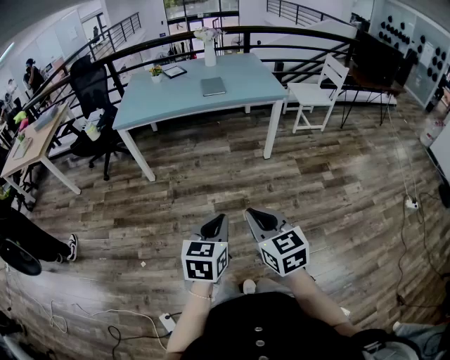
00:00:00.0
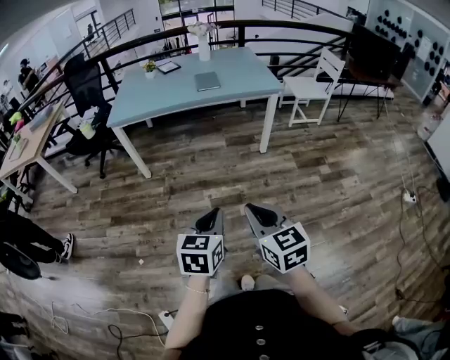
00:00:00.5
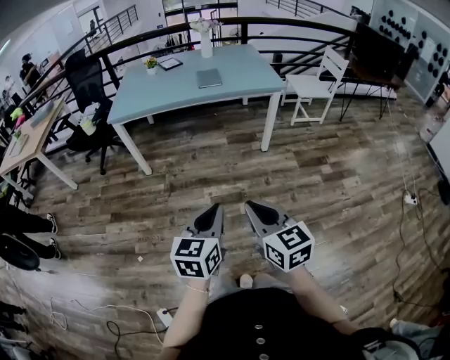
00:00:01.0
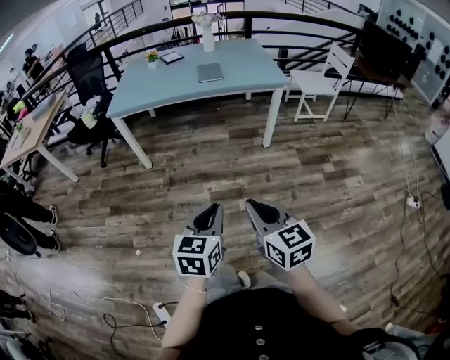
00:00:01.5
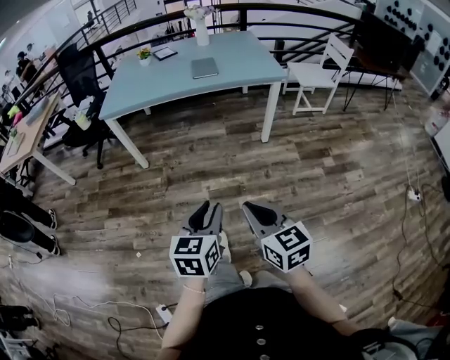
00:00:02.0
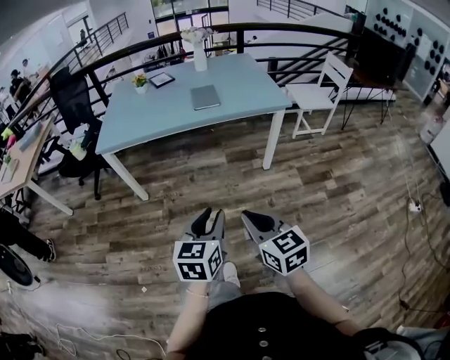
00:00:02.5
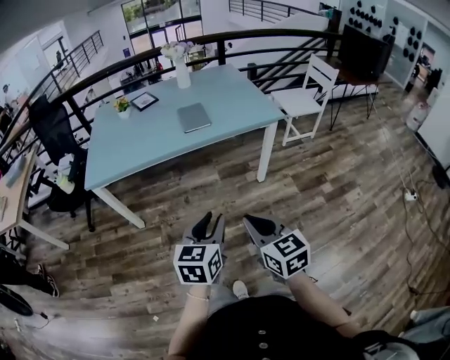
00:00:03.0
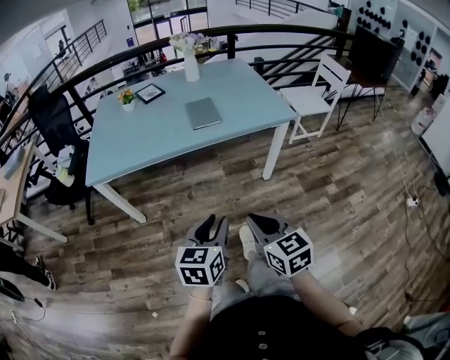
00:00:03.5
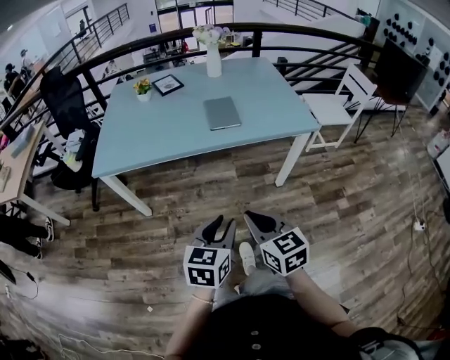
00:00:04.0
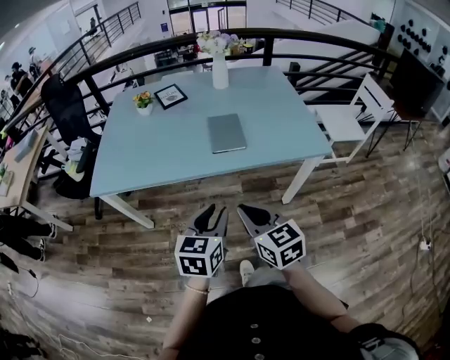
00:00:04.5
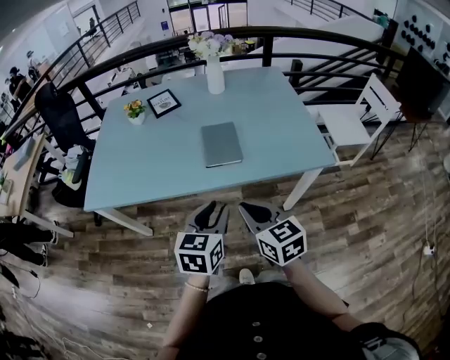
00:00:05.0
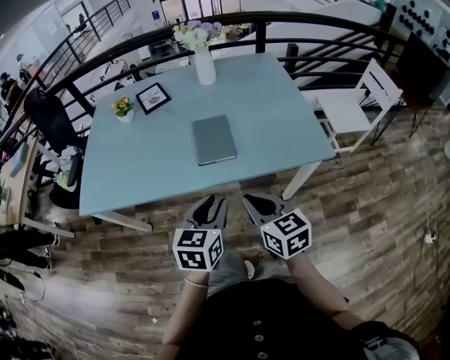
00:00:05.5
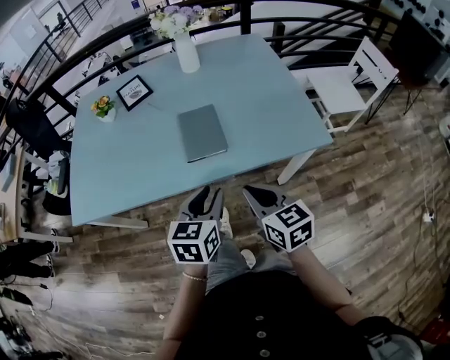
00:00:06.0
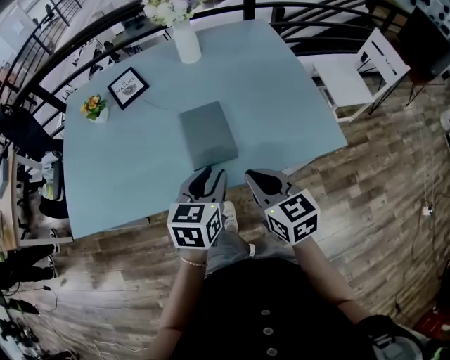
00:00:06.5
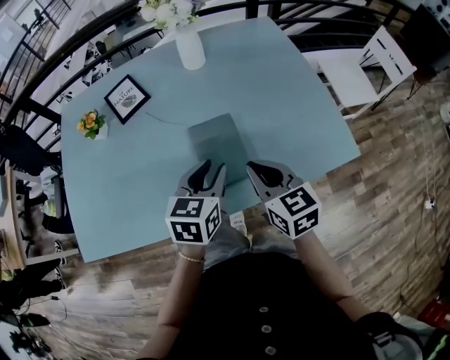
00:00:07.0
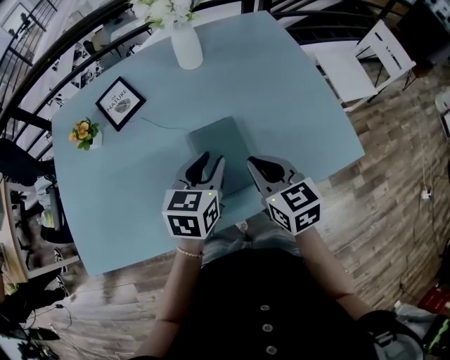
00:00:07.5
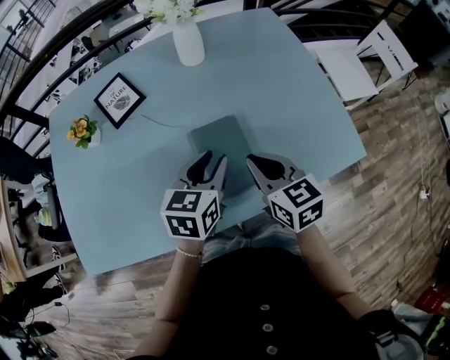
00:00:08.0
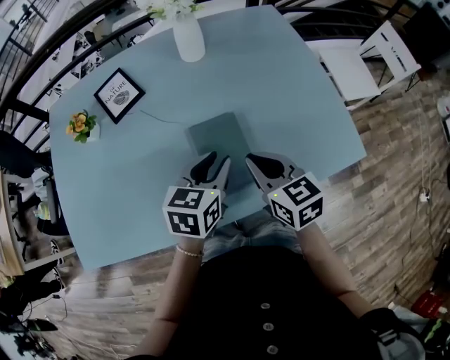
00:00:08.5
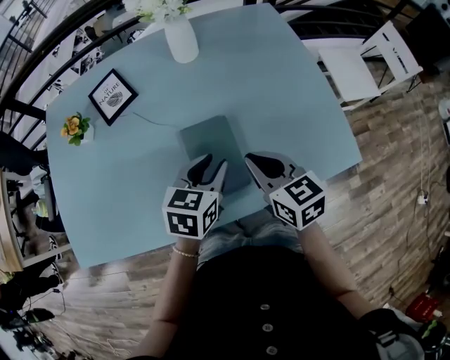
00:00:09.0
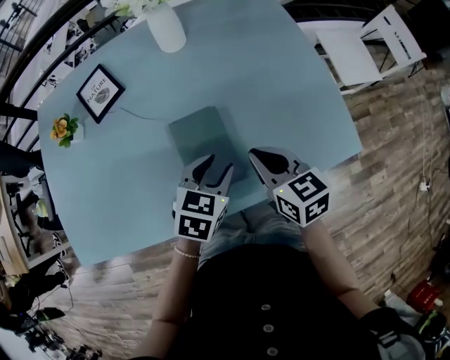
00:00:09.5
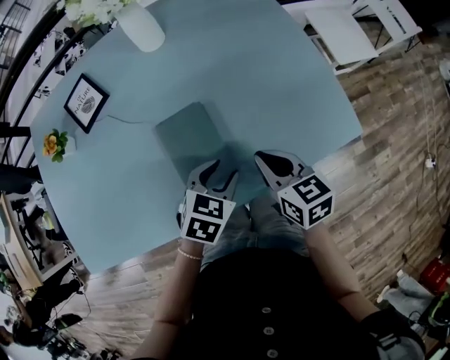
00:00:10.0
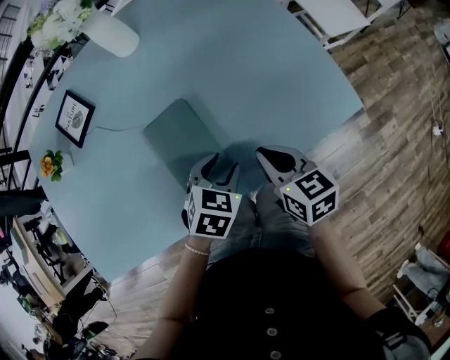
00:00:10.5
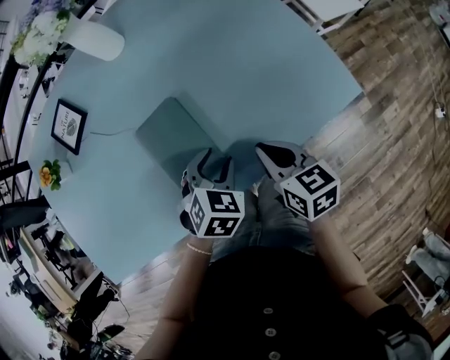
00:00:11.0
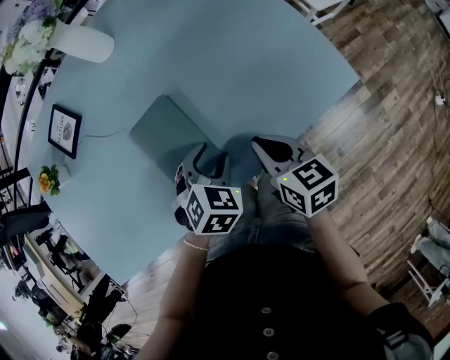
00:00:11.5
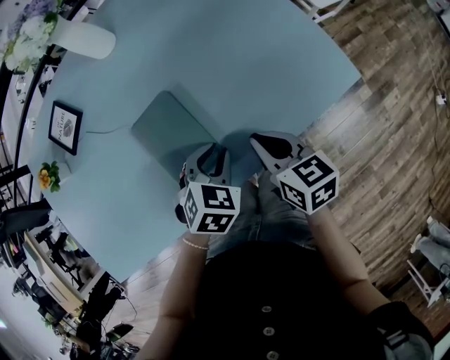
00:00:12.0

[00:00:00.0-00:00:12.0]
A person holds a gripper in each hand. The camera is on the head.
00:00:00.0 to 00:00:02.0: Both grippers travel together forward, about 5 cm. The left gripper opens up.
00:00:02.0 to 00:00:04.0: Both grippers move forward, some 35 cm.
00:00:04.0 to 00:00:06.0: Both grippers travel together forward, approximately 30 cm.
00:00:06.0 to 00:00:08.0: Both grippers move forward, some 25 cm.
00:00:08.0 to 00:00:10.0: Both grippers move to the right and downward, about 15 cm. The left gripper changes its angle by some 30 degrees.
00:00:10.0 to 00:00:12.0: The right gripper moves approximately 5 cm.

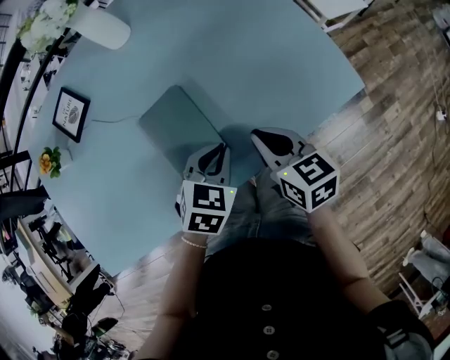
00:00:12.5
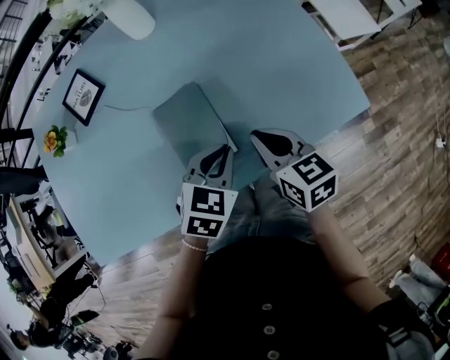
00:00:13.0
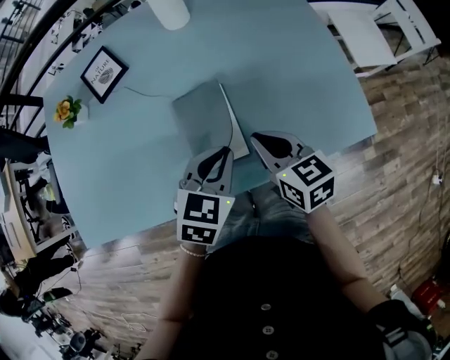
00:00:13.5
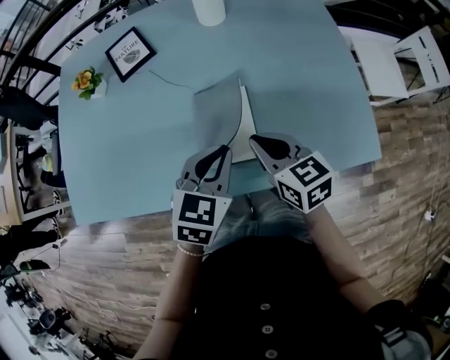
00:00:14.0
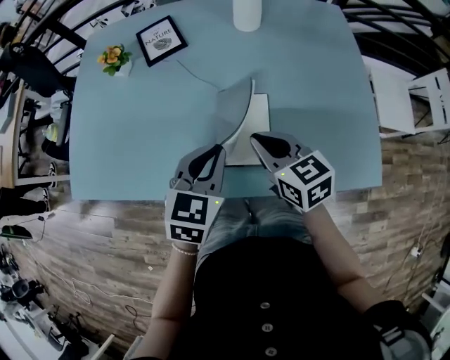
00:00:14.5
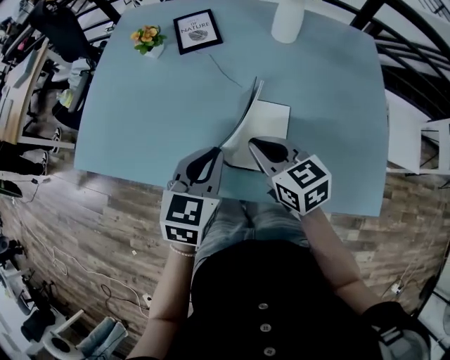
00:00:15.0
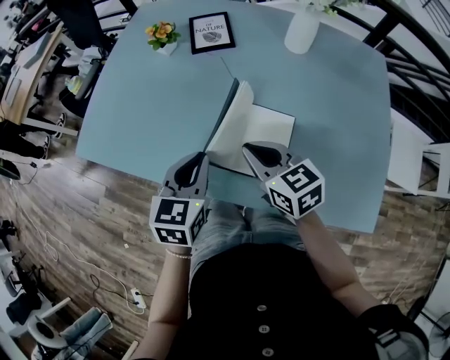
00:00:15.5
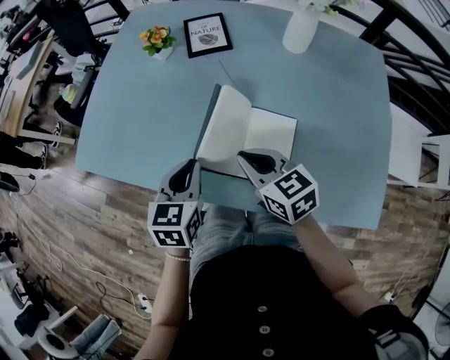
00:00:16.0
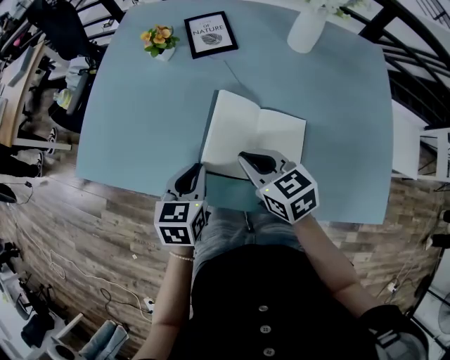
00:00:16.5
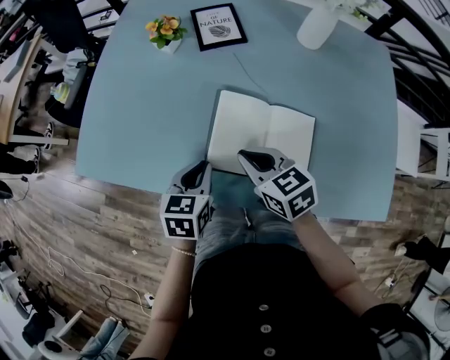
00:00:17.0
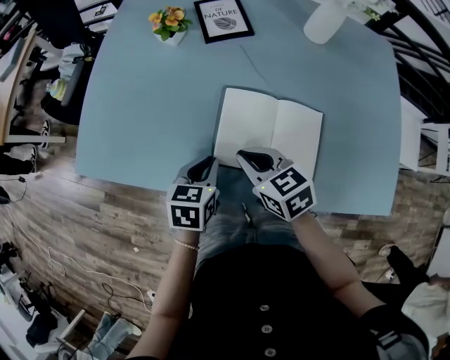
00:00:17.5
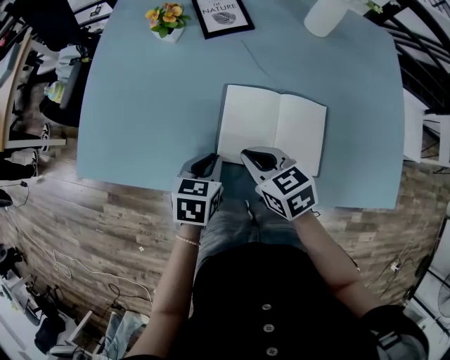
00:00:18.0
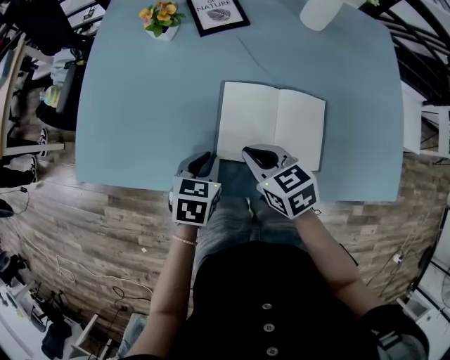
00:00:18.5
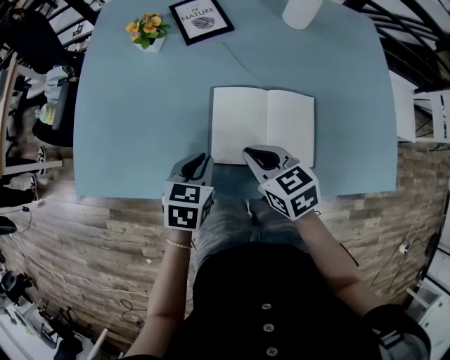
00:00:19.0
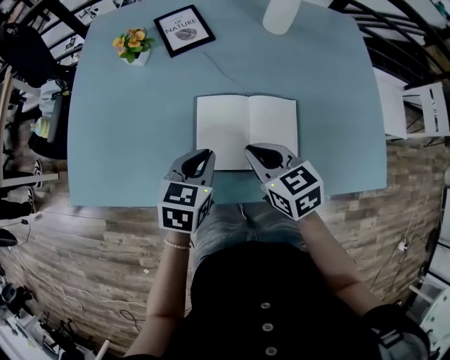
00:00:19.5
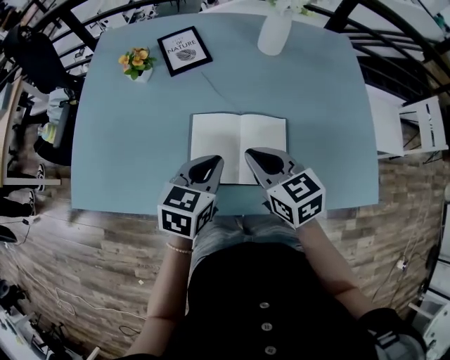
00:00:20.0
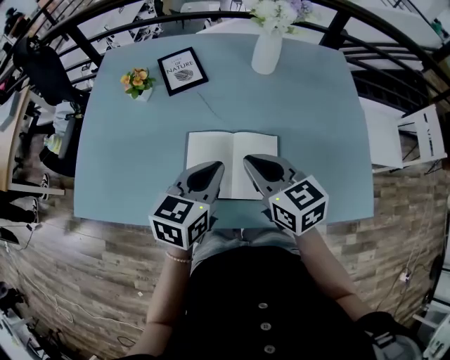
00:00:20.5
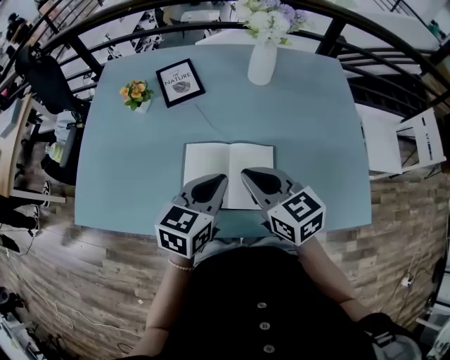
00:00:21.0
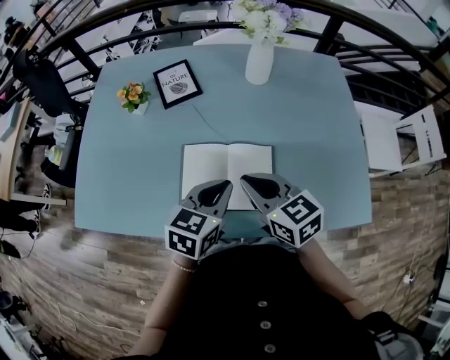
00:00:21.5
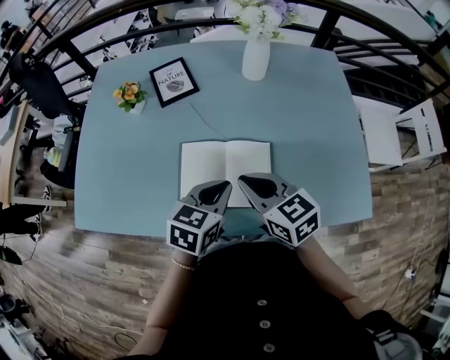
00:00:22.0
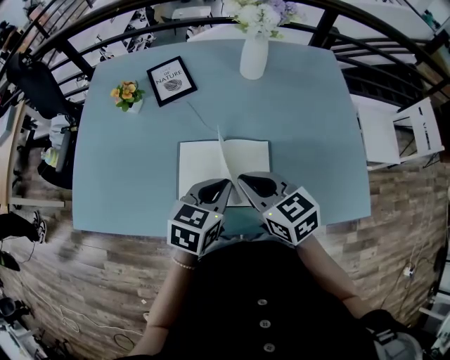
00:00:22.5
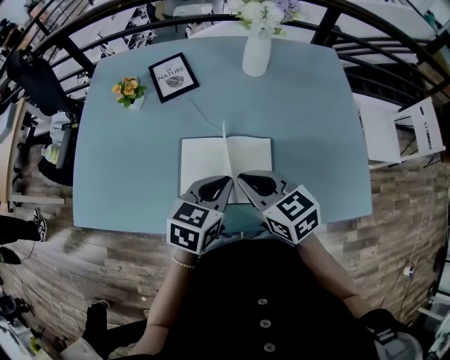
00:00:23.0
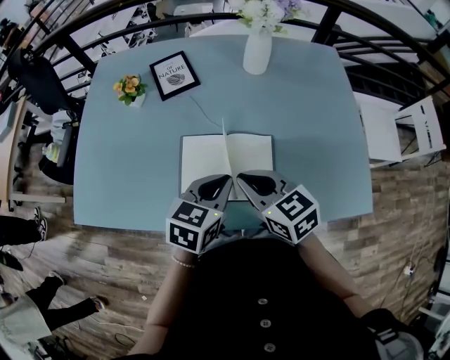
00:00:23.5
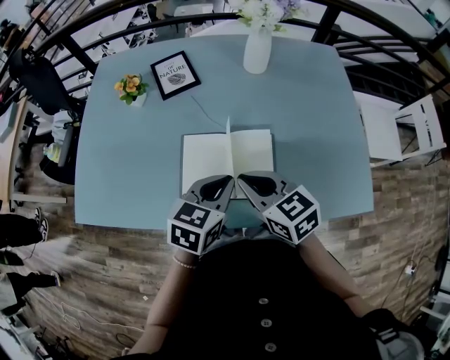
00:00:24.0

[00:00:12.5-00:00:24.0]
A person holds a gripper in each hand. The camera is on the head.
00:00:12.5 to 00:00:14.5: The right gripper ends up roughly 20 cm from where it was, and turns by roughly 40 degrees, while the left gripper ends up approximately 20 cm from where it was, and swivels some 40 degrees.
00:00:14.5 to 00:00:16.5: Both grippers move to the left, approximately 15 cm. The left gripper swivels some 30 degrees.
00:00:16.5 to 00:00:18.5: The right gripper heads to the left and downward, covering about 10 cm. Meanwhile the left gripper goes some 10 cm downward, and swivels approximately 20 degrees.
00:00:18.5 to 00:00:20.0: The left gripper is displaced upward and to the right by approximately 15 cm, and changes its angle by approximately 20 degrees. The right gripper travels to the right and upward by approximately 15 cm.
00:00:20.0 to 00:00:22.0: The left gripper is displaced to the right by some 5 cm.
00:00:22.0 to 00:00:24.0: The grippers move only a little.

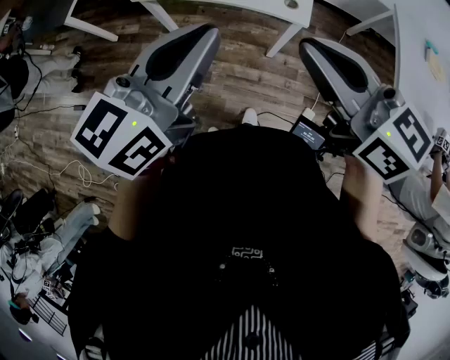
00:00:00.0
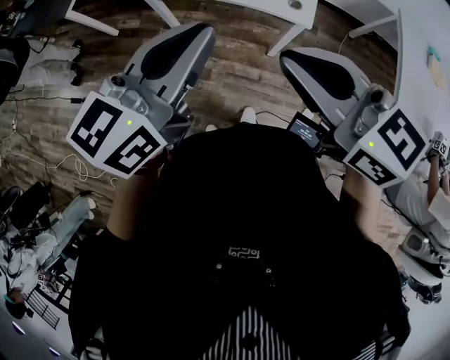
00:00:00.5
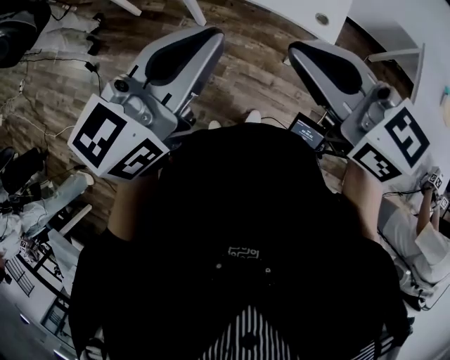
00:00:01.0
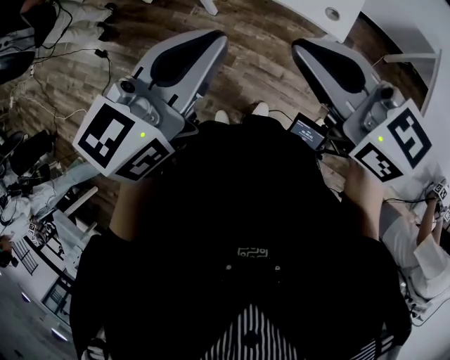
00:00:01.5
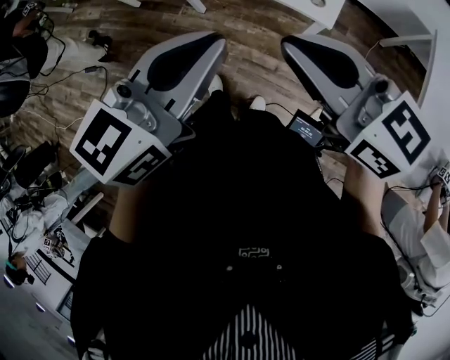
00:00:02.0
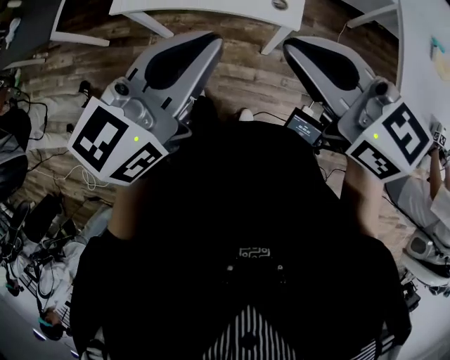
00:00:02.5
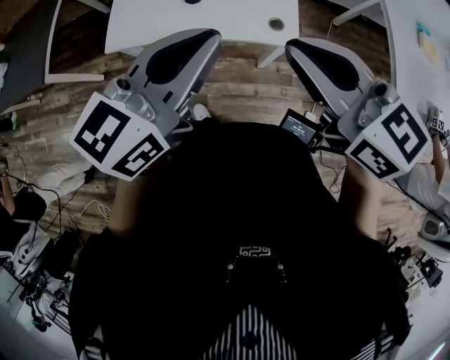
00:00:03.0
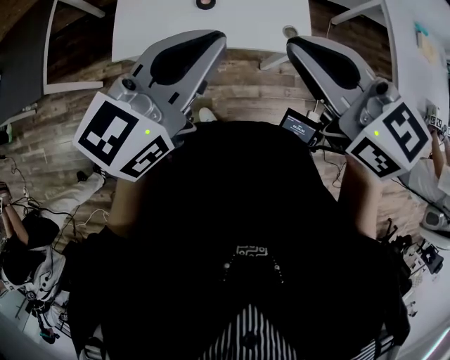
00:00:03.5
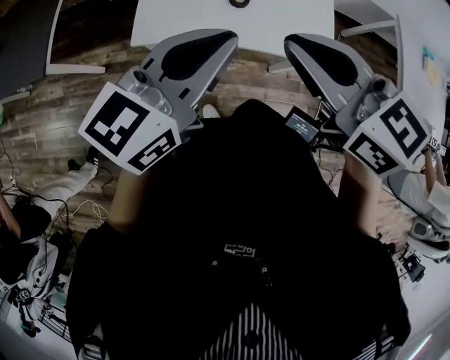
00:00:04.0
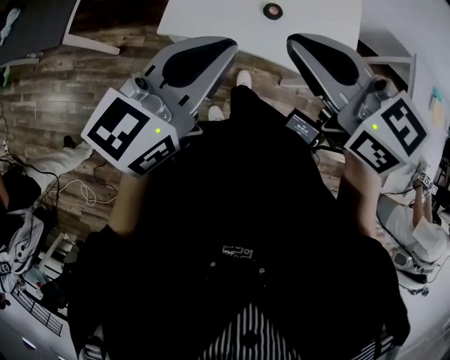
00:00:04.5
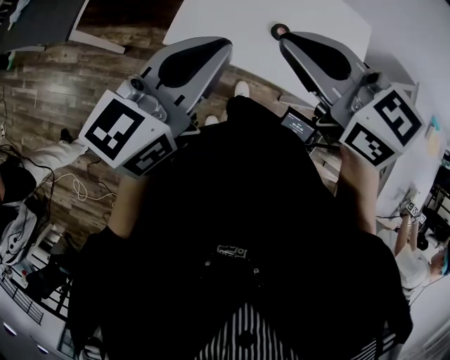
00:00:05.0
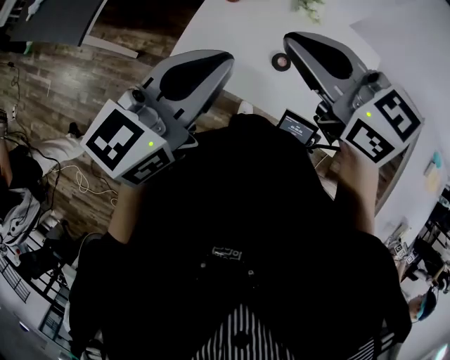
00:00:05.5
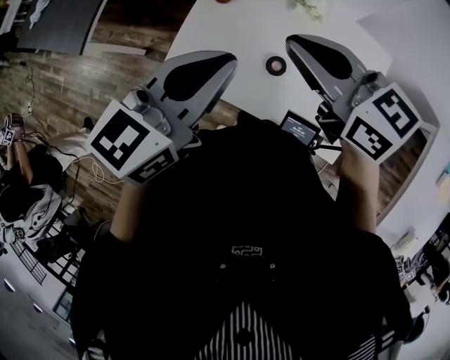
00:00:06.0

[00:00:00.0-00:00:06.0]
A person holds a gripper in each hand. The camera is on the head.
00:00:00.0 to 00:00:02.0: The right gripper travels to the left by some 5 cm.
00:00:02.0 to 00:00:04.0: The grippers both shift to the right by about 5 cm. The left gripper rotates about 20 degrees, while the right gripper changes its angle by some 20 degrees.
00:00:04.0 to 00:00:06.0: The two grippers go roughly 20 cm forward and to the right.
